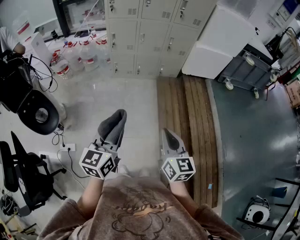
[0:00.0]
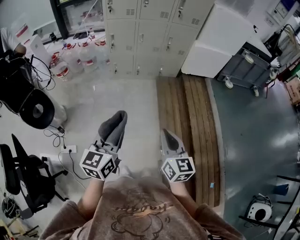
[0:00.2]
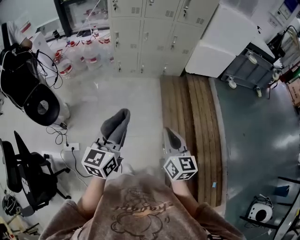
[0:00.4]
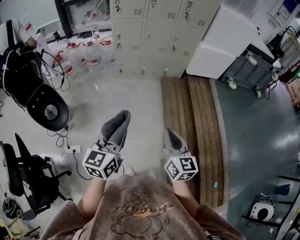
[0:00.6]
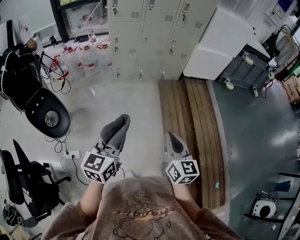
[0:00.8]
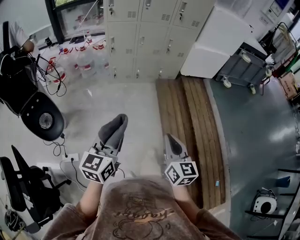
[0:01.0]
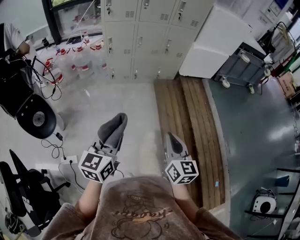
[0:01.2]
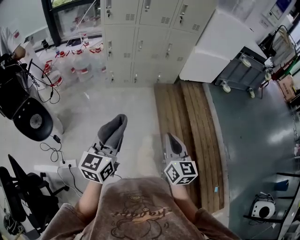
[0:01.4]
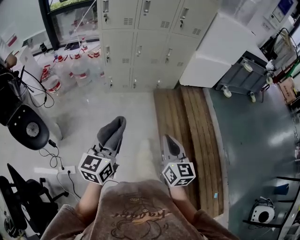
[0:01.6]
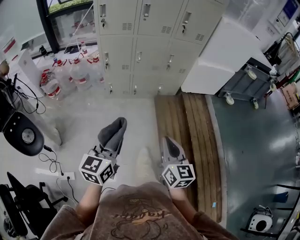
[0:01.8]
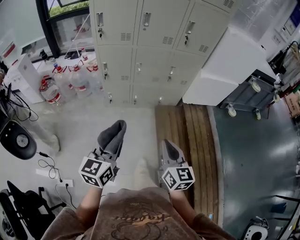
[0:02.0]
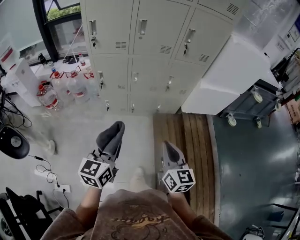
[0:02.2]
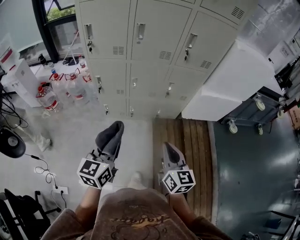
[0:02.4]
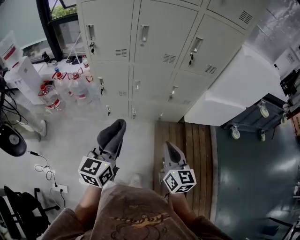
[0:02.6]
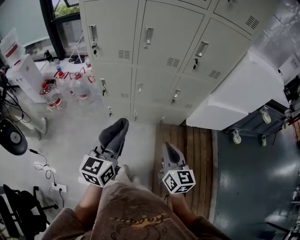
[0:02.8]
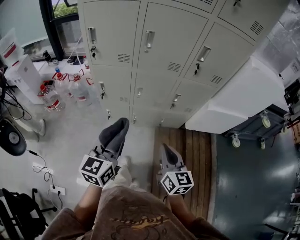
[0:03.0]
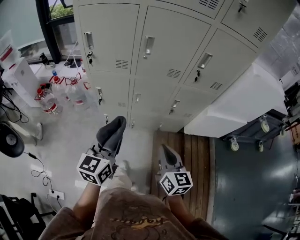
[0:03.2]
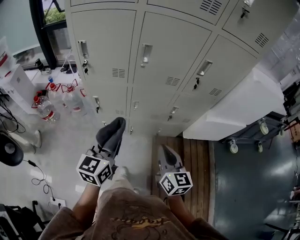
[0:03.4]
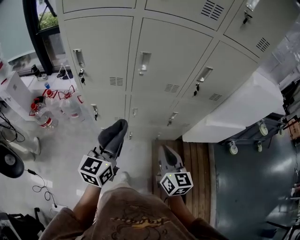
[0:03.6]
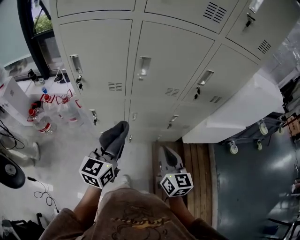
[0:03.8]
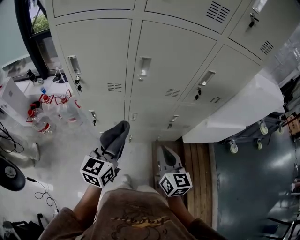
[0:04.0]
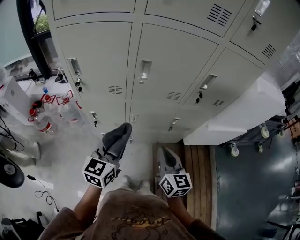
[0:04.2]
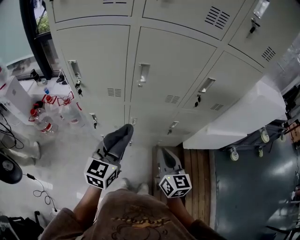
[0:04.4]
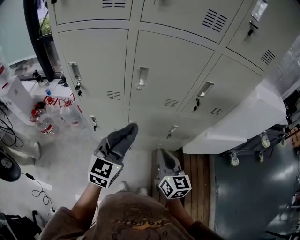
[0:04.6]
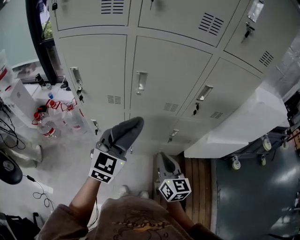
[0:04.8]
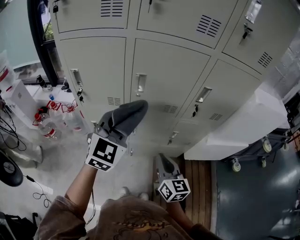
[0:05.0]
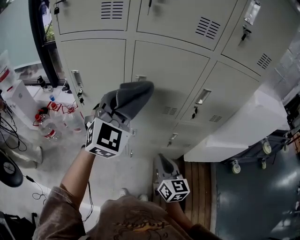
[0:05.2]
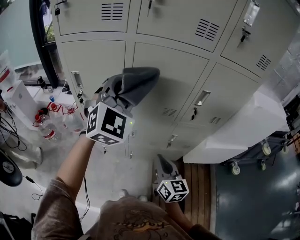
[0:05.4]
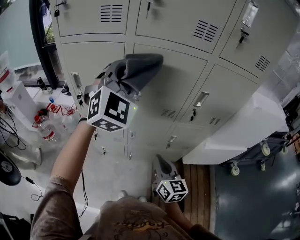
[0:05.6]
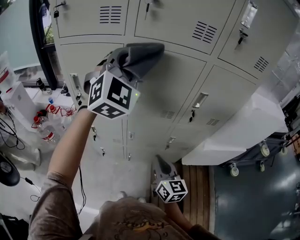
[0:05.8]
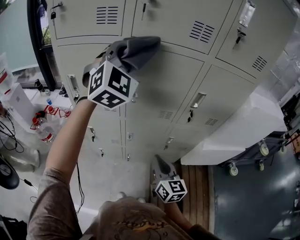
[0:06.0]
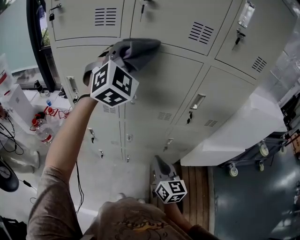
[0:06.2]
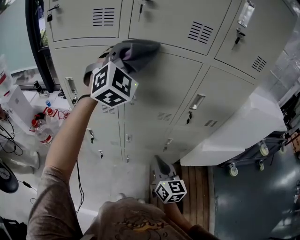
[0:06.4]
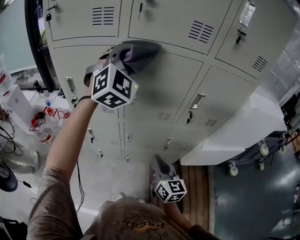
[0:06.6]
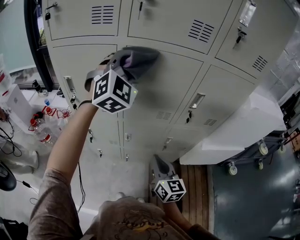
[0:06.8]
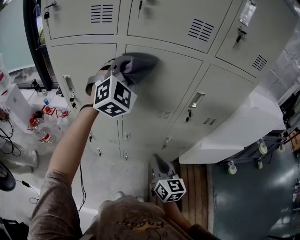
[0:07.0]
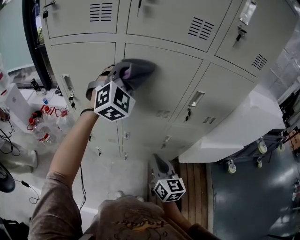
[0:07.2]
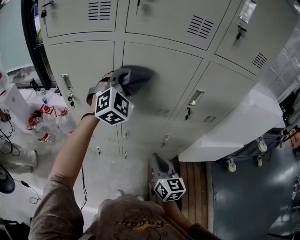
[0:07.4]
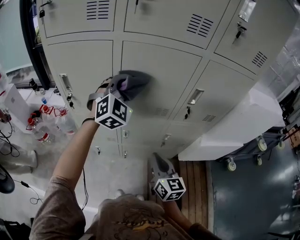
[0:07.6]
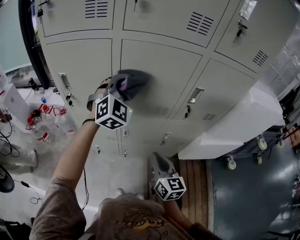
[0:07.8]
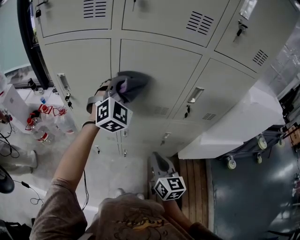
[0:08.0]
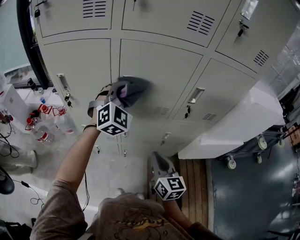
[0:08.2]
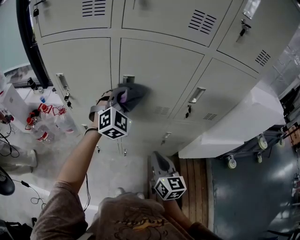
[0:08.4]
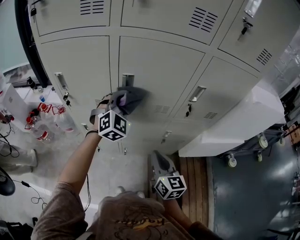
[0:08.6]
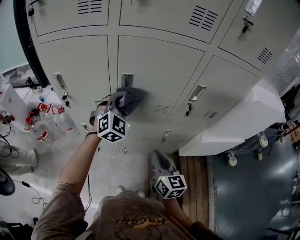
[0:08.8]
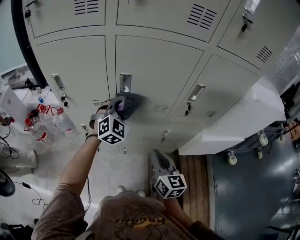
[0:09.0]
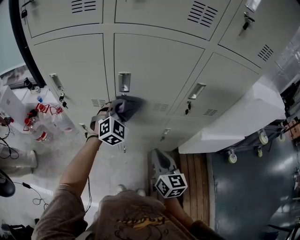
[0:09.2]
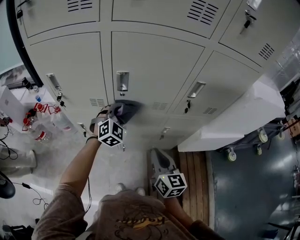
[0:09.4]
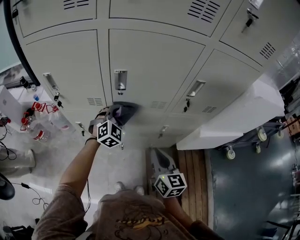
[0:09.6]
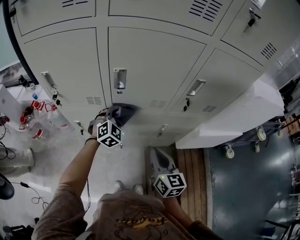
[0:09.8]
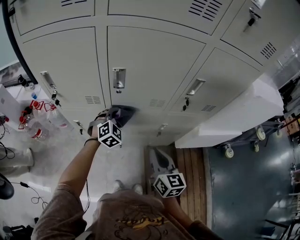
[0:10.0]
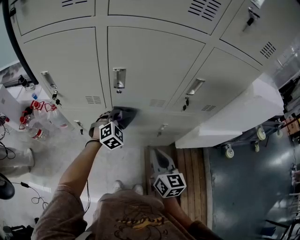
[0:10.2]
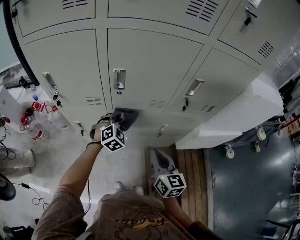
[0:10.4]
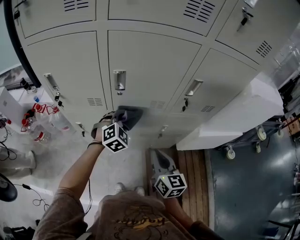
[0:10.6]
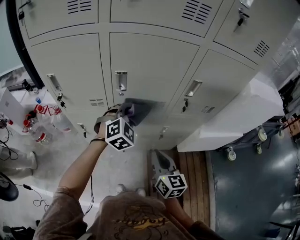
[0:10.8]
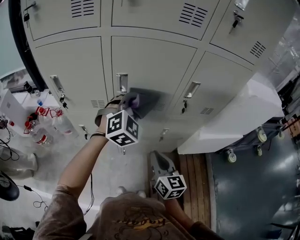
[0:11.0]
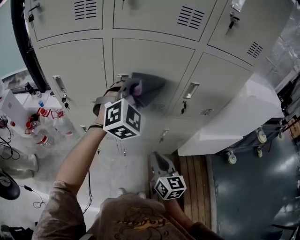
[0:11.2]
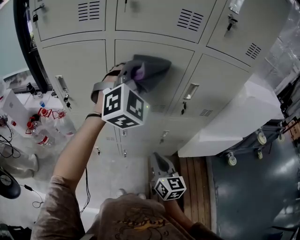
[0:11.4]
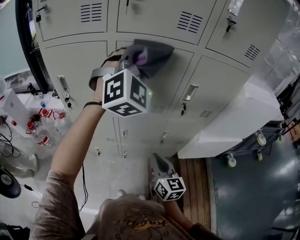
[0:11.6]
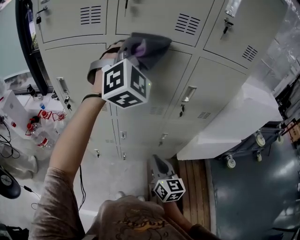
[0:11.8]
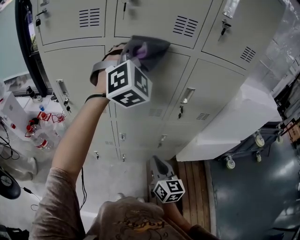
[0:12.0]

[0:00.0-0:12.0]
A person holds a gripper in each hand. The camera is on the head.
0:00.0 to 0:01.6: The two grippers go approximately 15 cm forward and to the left.
0:01.6 to 0:03.0: Both grippers are carried forward, some 40 cm.
0:03.0 to 0:04.4: Both grippers move forward, some 20 cm.
0:04.4 to 0:06.0: The left gripper travels upward and forward by some 35 cm, and rotates around the line of its fingers by roughly 60 degrees, clockwise from behind.
0:06.0 to 0:07.6: The left gripper goes roughly 15 cm downward.
0:07.6 to 0:09.0: The left gripper moves downward, some 15 cm.
0:09.0 to 0:10.4: The left gripper heads downward, covering some 15 cm.
0:10.4 to 0:12.0: The left gripper heads upward, covering some 40 cm, and tips its fingers upward by about 40 degrees.

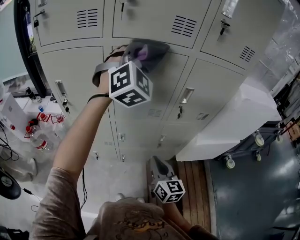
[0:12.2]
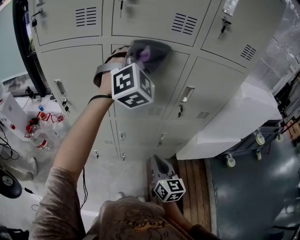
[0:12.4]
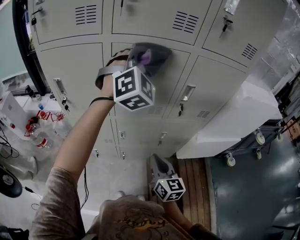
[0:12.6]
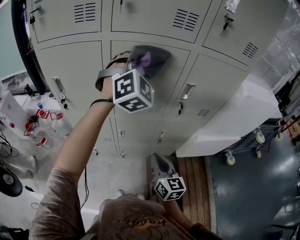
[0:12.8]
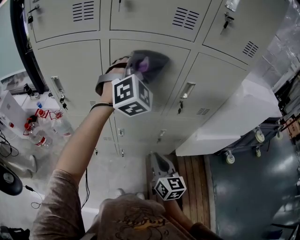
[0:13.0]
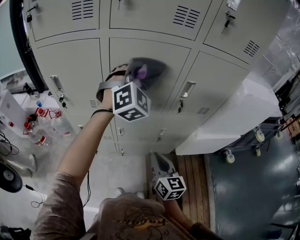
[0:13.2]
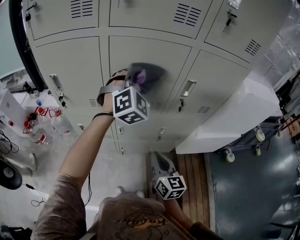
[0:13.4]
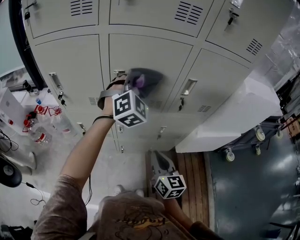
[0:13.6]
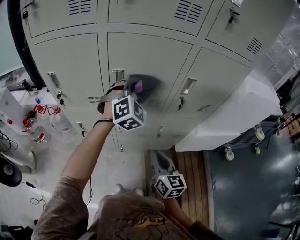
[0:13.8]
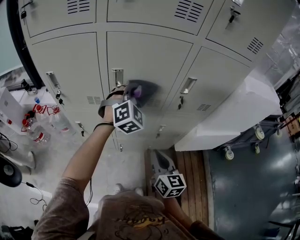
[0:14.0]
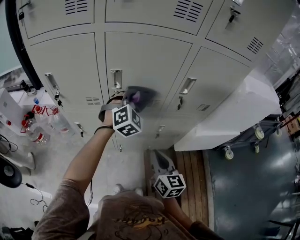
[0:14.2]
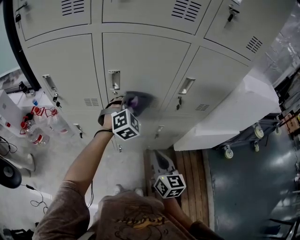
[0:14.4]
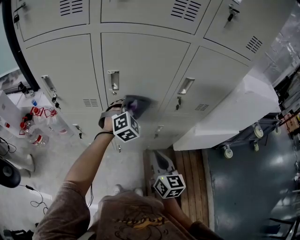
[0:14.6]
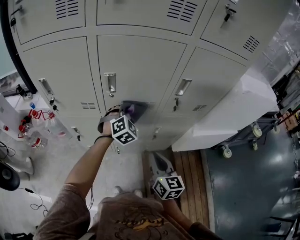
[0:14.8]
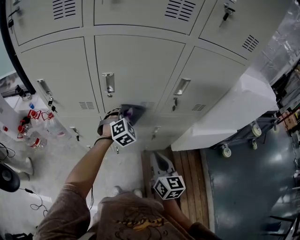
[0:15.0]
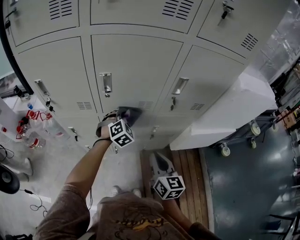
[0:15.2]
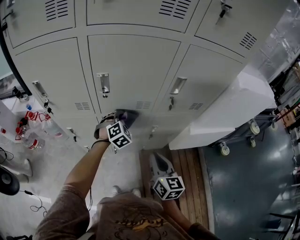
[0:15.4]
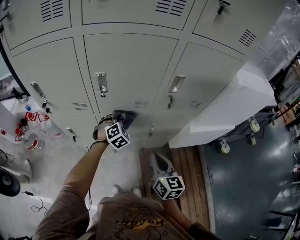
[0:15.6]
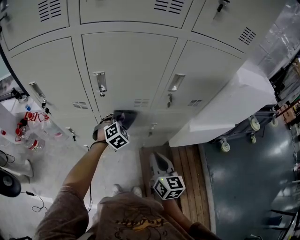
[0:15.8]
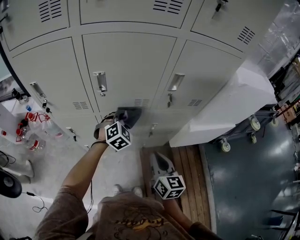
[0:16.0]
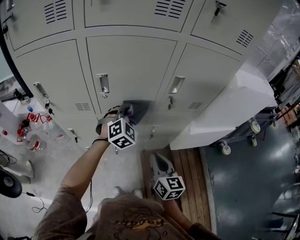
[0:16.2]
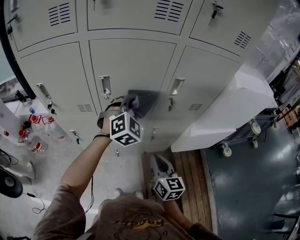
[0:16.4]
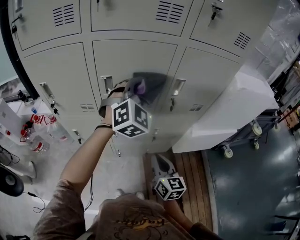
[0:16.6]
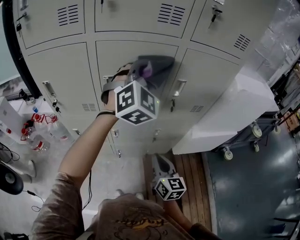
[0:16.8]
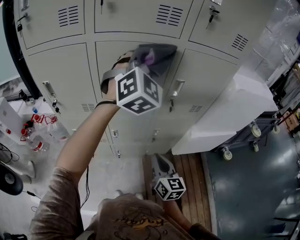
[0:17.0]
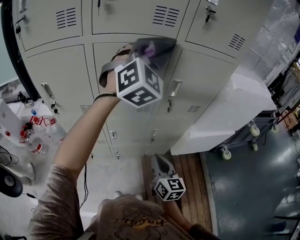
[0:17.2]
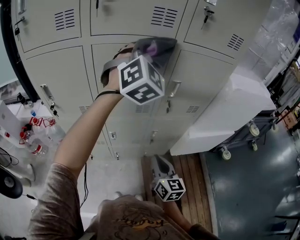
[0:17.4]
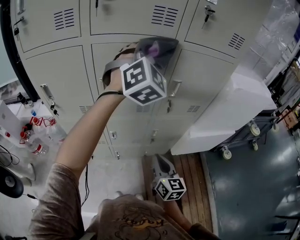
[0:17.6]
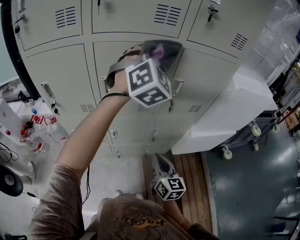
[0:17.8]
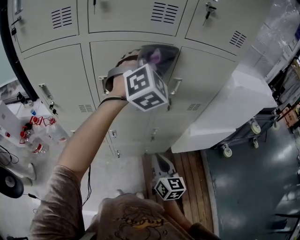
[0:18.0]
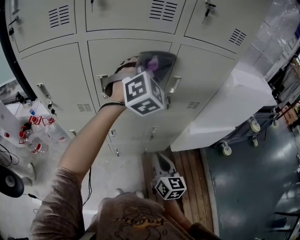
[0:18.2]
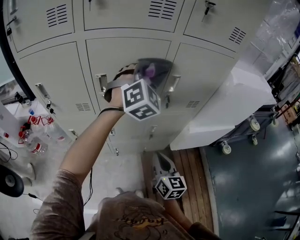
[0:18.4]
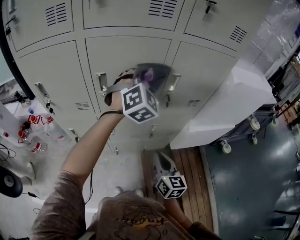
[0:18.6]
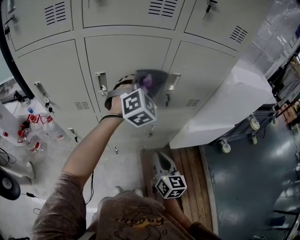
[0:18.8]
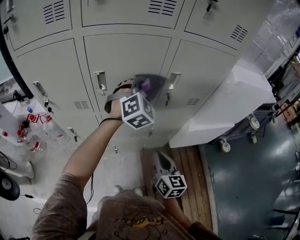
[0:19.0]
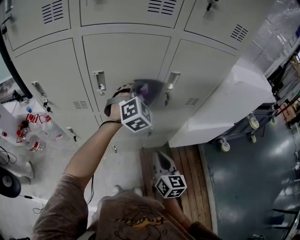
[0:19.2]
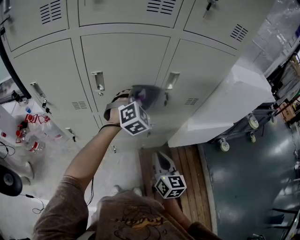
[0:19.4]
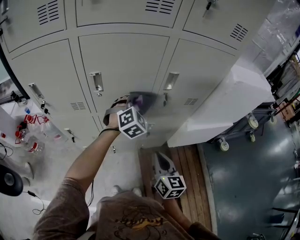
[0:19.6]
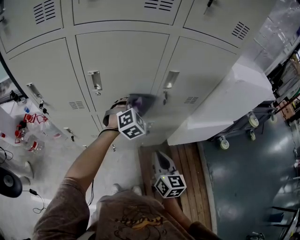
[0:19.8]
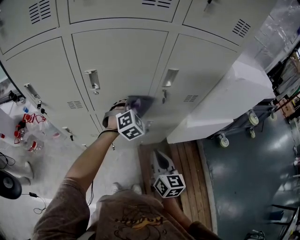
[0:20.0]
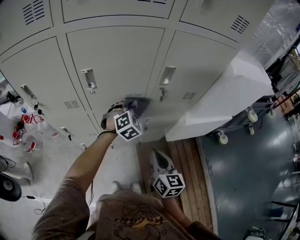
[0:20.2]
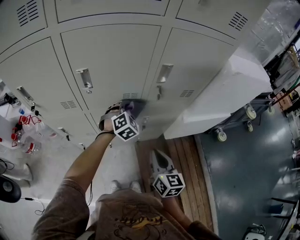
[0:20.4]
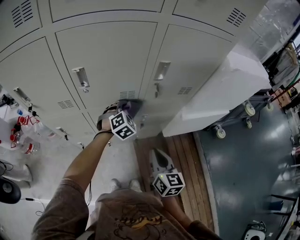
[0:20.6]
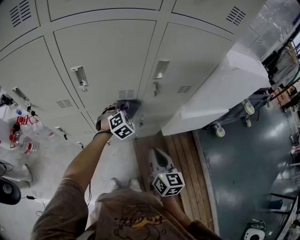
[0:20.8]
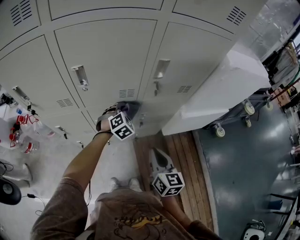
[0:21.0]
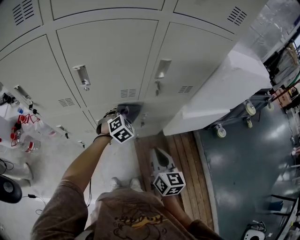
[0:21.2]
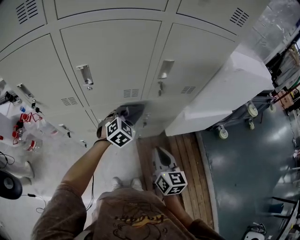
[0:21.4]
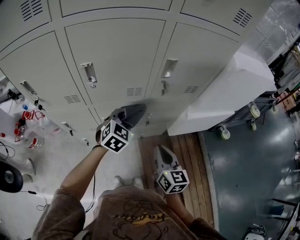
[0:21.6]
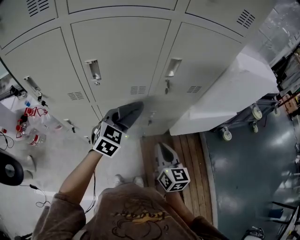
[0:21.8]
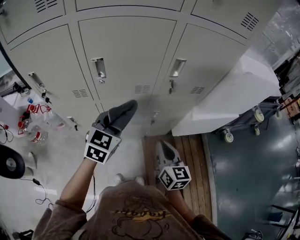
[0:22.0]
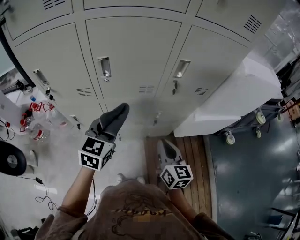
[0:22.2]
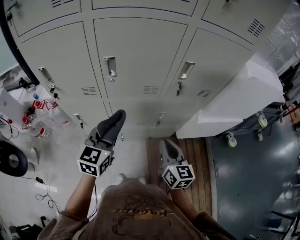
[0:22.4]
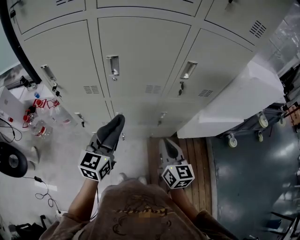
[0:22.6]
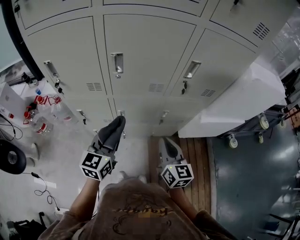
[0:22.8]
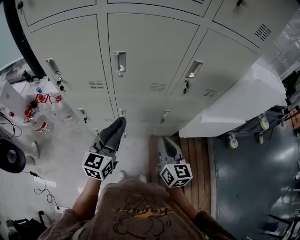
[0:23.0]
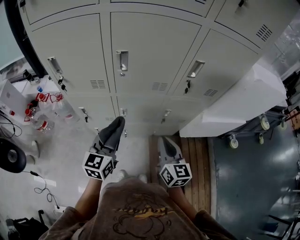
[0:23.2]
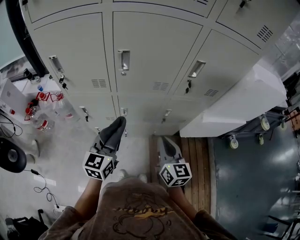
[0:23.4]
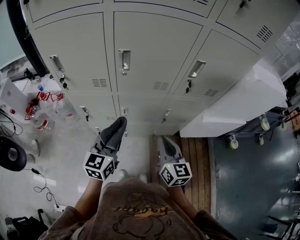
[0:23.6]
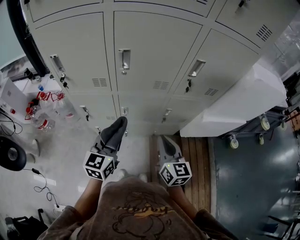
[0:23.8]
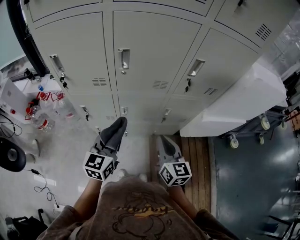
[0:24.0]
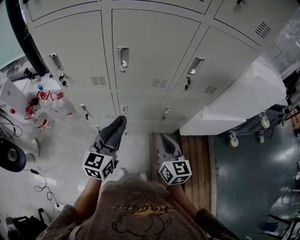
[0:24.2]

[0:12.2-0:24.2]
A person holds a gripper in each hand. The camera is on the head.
0:12.2 to 0:13.8: The left gripper moves downward, about 20 cm.
0:13.8 to 0:15.2: The left gripper travels downward by about 20 cm, and turns by some 20 degrees.
0:15.2 to 0:16.6: The left gripper is displaced upward by roughly 25 cm, and changes its angle by roughly 30 degrees.
0:16.6 to 0:18.2: The left gripper goes about 5 cm upward.
0:18.2 to 0:19.8: The left gripper moves downward, approximately 25 cm, and turns by roughly 20 degrees.
0:19.8 to 0:21.2: The left gripper heads downward, covering roughly 10 cm.
0:21.2 to 0:22.6: The right gripper moves roughly 5 cm, while the left gripper is displaced backward, to the left and upward by some 25 cm, and rolls counterclockwise, seen from behind, by some 50 degrees.
0:22.6 to 0:24.2: The grippers stay close to where they were, moving slightly.
